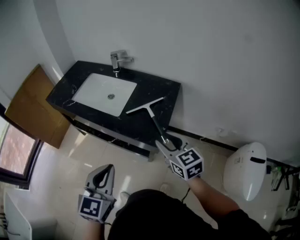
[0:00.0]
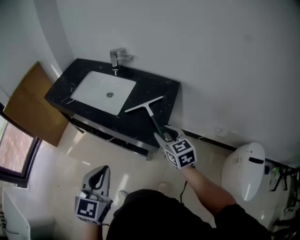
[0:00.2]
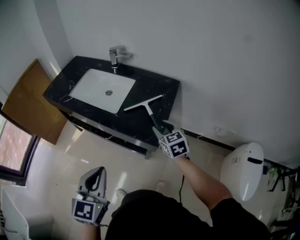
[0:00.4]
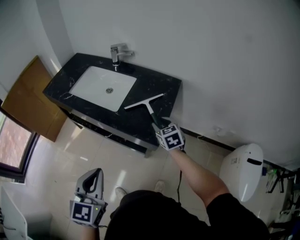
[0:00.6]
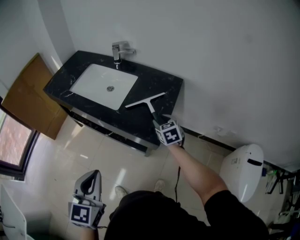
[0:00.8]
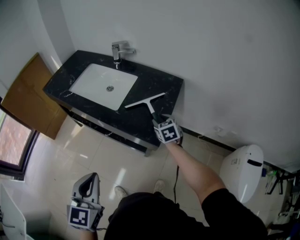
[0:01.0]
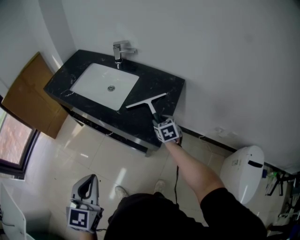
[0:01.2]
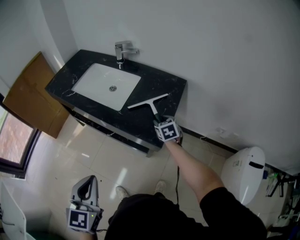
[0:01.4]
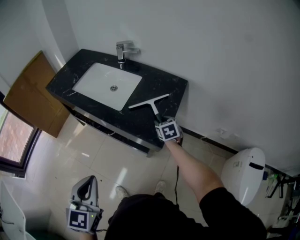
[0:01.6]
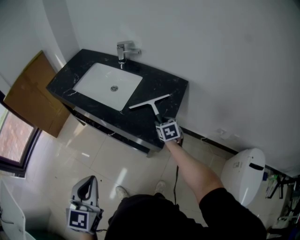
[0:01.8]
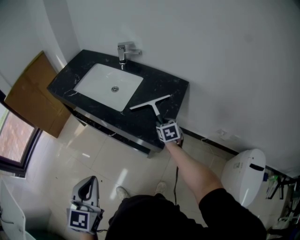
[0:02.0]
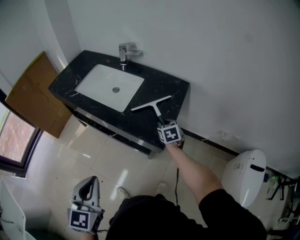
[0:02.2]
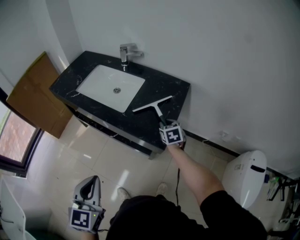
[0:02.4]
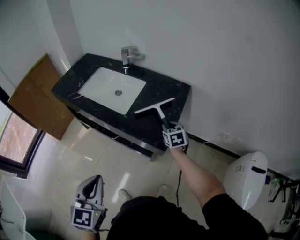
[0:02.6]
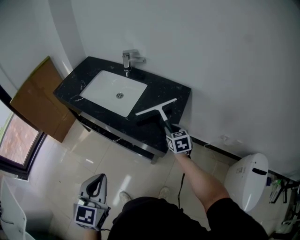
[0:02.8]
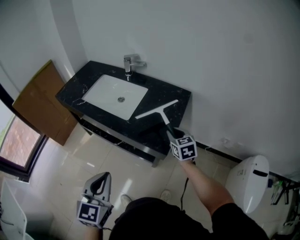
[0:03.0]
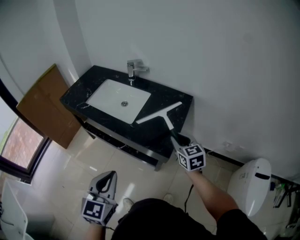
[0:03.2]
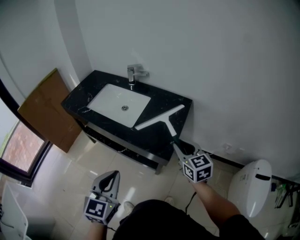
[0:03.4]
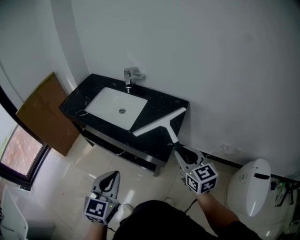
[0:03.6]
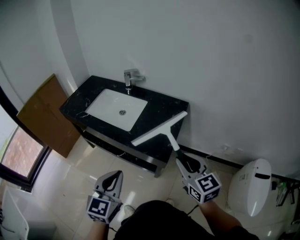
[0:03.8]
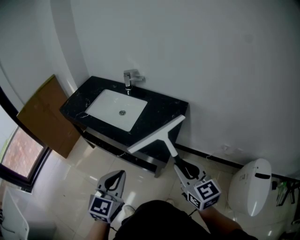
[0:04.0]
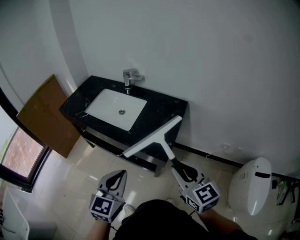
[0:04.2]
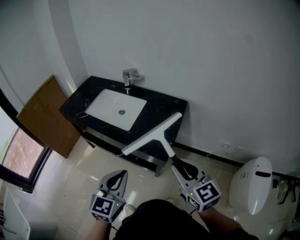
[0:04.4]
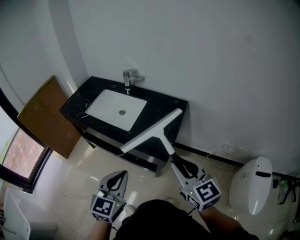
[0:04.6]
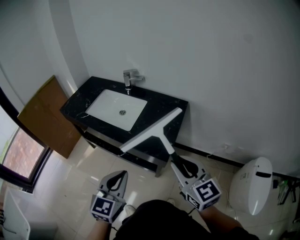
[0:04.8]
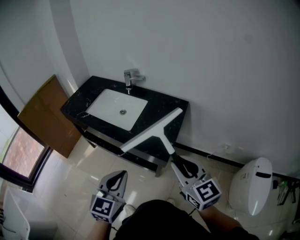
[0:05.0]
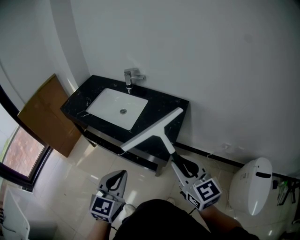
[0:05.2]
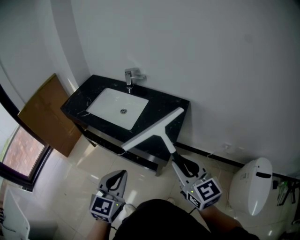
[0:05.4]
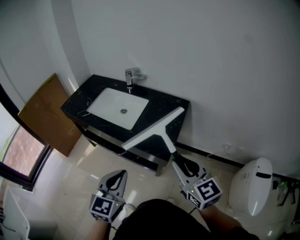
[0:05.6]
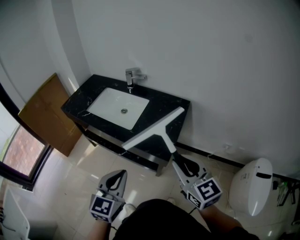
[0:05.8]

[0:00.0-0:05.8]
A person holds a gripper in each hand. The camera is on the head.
0:00.0 to 0:01.4: The right gripper shifts approximately 25 cm downward and forward, and rotates about 20 degrees, while the left gripper goes approximately 5 cm to the left.
0:01.4 to 0:02.8: The right gripper changes place by approximately 5 cm.
0:02.8 to 0:04.4: The left gripper goes approximately 5 cm to the right. Meanwhile the right gripper travels backward and upward by some 30 cm, and changes its angle by approximately 30 degrees.
0:04.4 to 0:05.8: The grippers stay close to where they were, moving slightly.

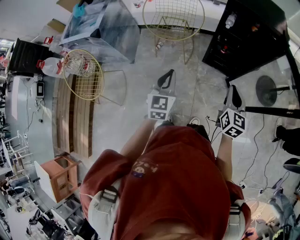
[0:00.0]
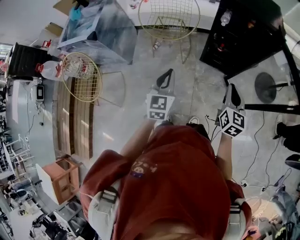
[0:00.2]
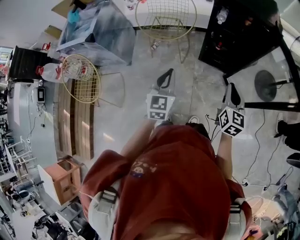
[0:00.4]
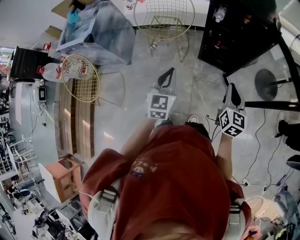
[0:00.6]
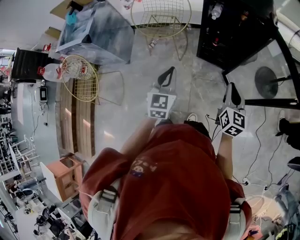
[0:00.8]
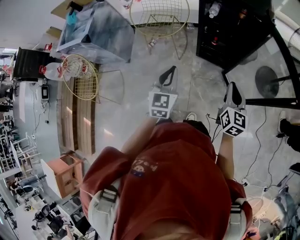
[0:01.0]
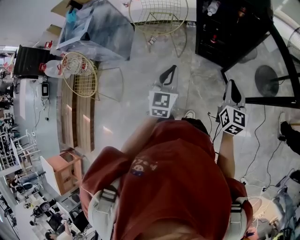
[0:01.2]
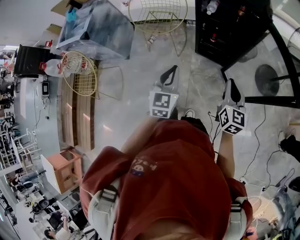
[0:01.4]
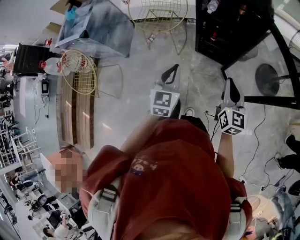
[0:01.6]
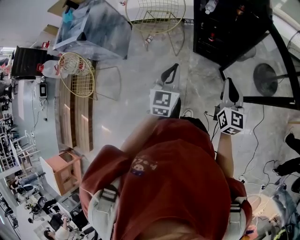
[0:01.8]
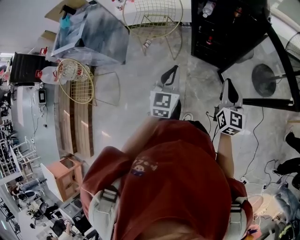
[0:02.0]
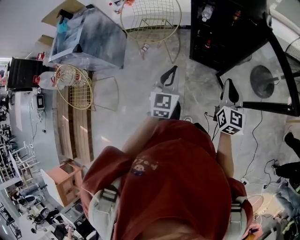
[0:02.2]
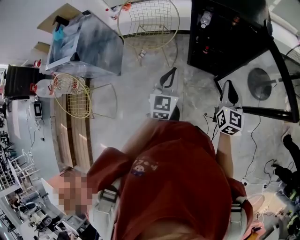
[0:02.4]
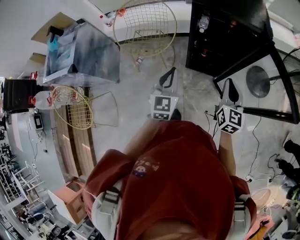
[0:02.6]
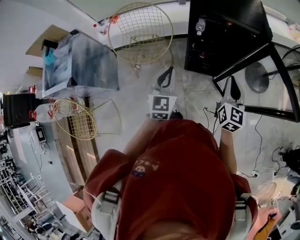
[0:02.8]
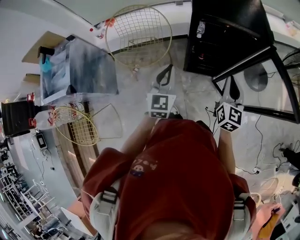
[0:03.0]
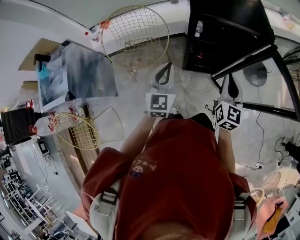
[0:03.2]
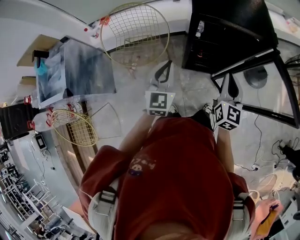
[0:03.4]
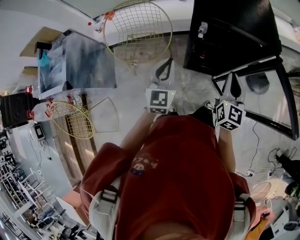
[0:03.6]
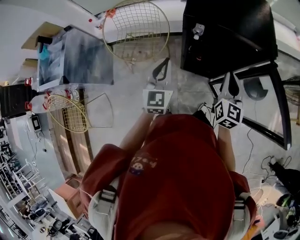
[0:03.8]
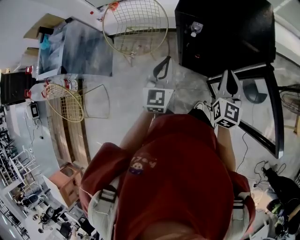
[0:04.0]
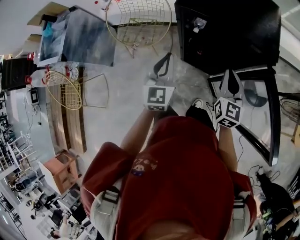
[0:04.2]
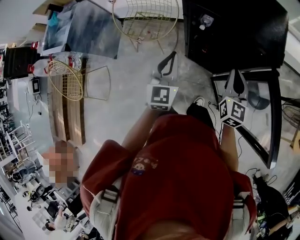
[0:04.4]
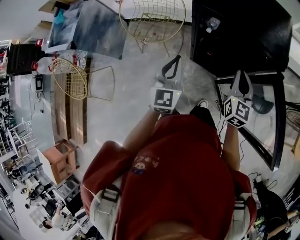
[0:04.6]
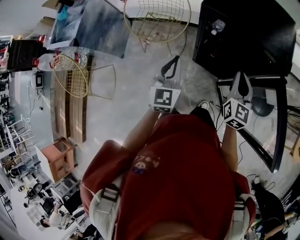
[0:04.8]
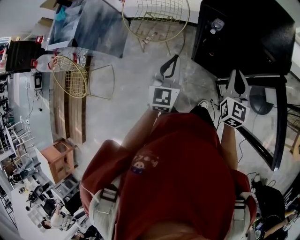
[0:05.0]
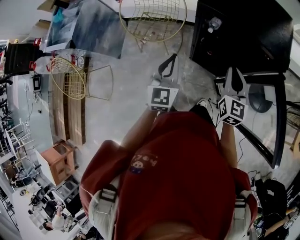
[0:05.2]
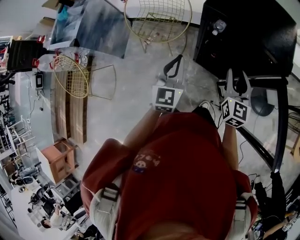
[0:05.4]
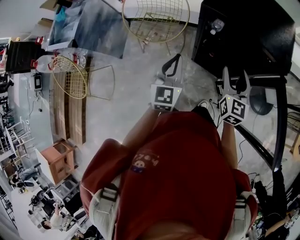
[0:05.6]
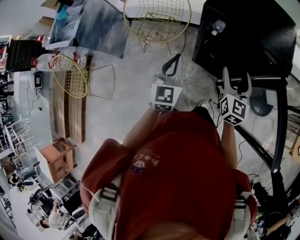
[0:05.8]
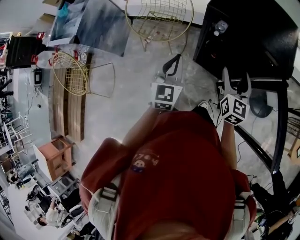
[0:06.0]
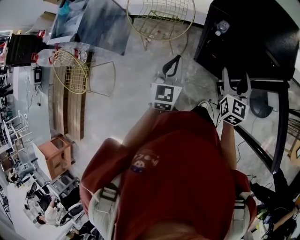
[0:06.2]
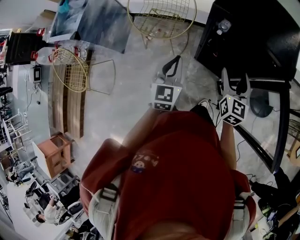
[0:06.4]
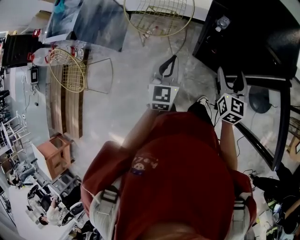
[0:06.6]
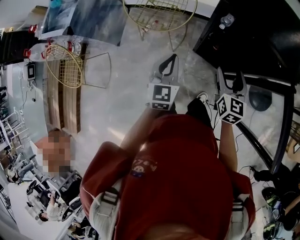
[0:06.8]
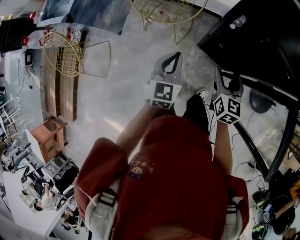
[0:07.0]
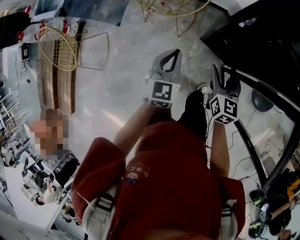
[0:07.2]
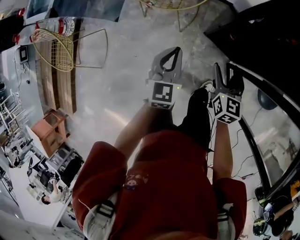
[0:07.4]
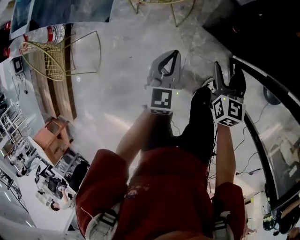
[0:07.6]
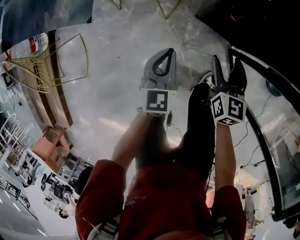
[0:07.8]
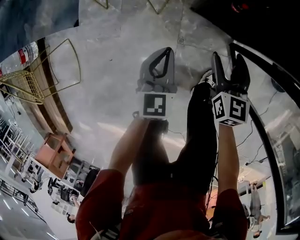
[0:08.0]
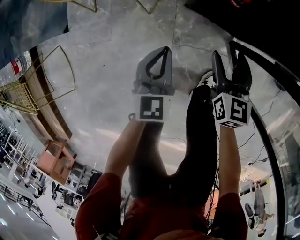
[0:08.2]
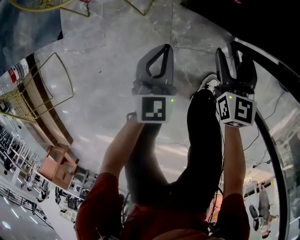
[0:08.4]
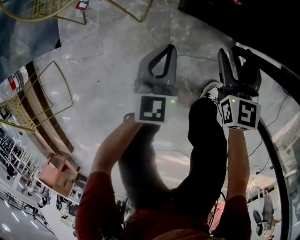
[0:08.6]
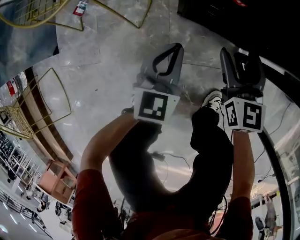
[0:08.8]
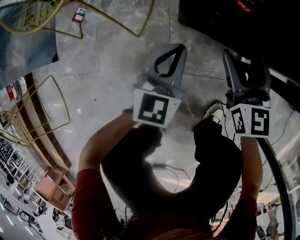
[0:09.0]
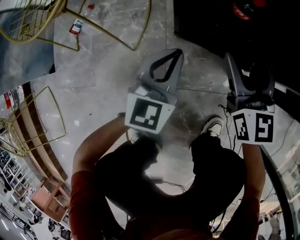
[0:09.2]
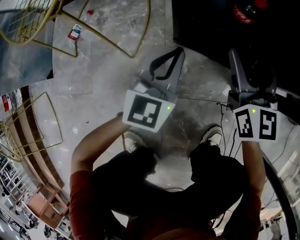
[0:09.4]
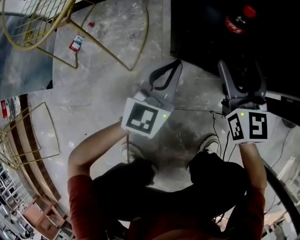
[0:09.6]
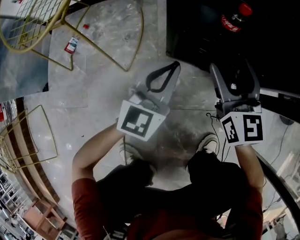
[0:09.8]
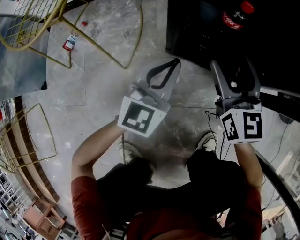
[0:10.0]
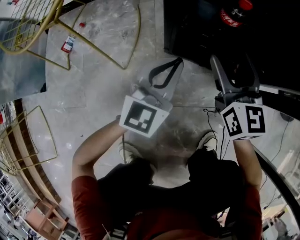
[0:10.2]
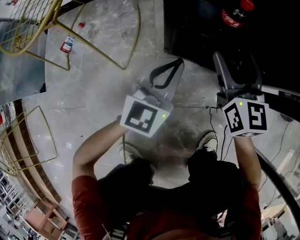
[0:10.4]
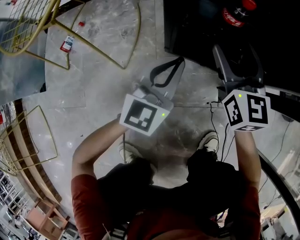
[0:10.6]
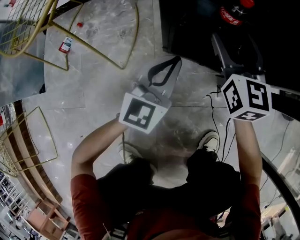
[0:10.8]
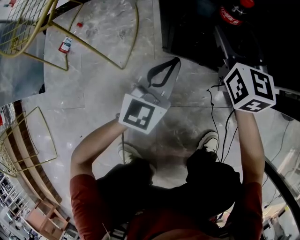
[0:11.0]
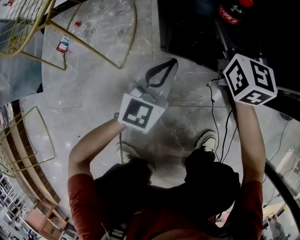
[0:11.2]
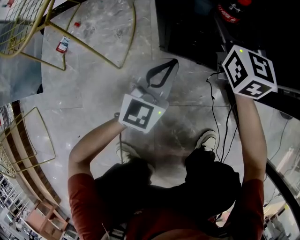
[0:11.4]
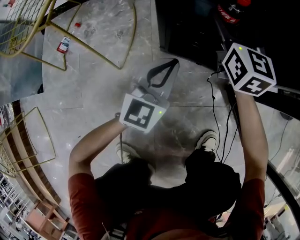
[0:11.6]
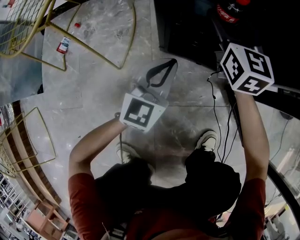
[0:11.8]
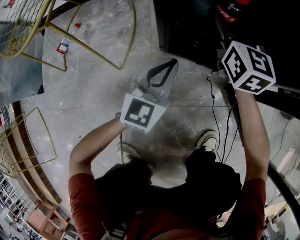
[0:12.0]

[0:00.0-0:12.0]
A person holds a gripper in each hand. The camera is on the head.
0:00.0 to 0:01.6: Both grippers move to the right, approximately 15 cm.
0:01.6 to 0:03.0: Both grippers travel together forward and to the left, some 25 cm. The right gripper changes its angle by roughly 30 degrees.
0:03.0 to 0:04.4: The right gripper heads to the right and forward, covering roughly 15 cm, and swivels about 20 degrees. Meanwhile the left gripper heads to the right, covering some 10 cm.
0:04.4 to 0:06.0: The two grippers go some 5 cm to the left. The right gripper opens up.
0:06.0 to 0:07.6: The left gripper shifts some 30 cm downward; the right gripper is displaced downward and to the left by about 30 cm.
0:07.6 to 0:09.0: Both grippers move downward, some 35 cm. The left gripper changes its angle by roughly 30 degrees.
0:09.0 to 0:10.4: The right gripper travels forward by some 5 cm; the left gripper ends up approximately 5 cm from where it was.
0:10.4 to 0:12.0: The right gripper goes some 10 cm forward.

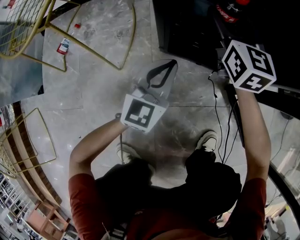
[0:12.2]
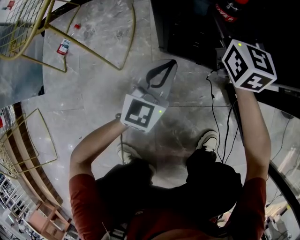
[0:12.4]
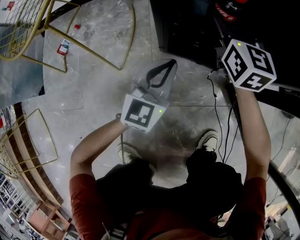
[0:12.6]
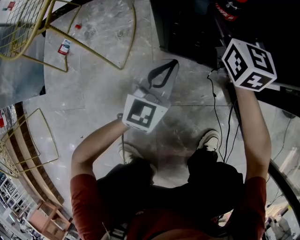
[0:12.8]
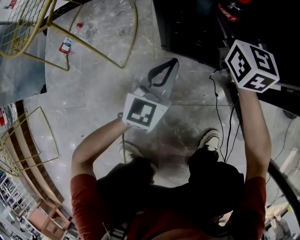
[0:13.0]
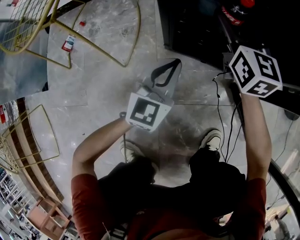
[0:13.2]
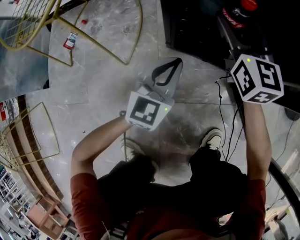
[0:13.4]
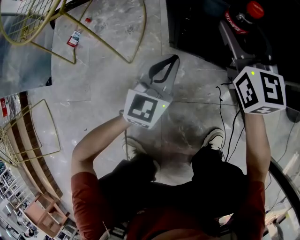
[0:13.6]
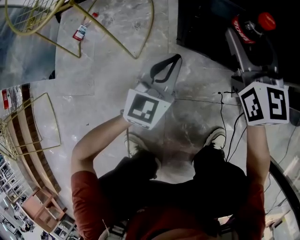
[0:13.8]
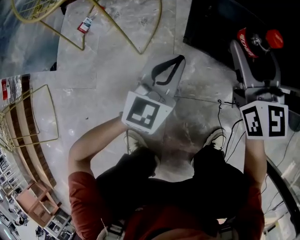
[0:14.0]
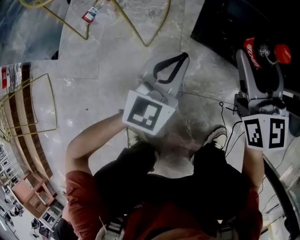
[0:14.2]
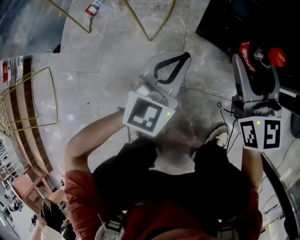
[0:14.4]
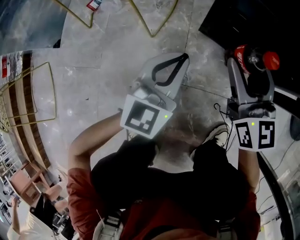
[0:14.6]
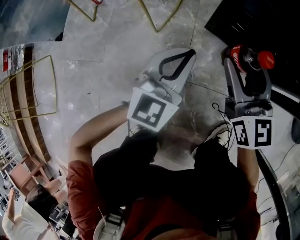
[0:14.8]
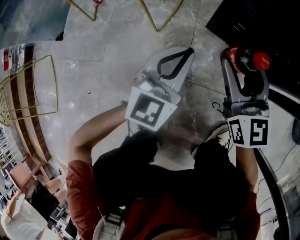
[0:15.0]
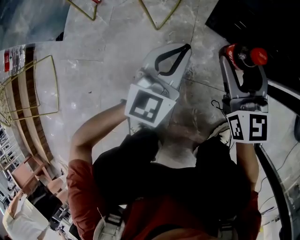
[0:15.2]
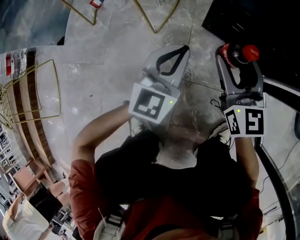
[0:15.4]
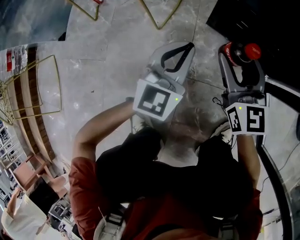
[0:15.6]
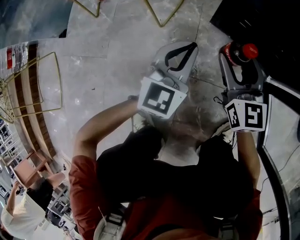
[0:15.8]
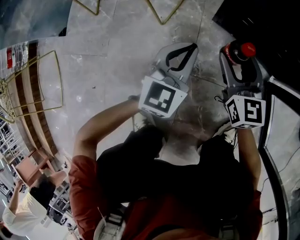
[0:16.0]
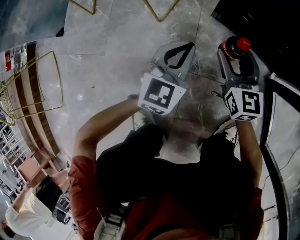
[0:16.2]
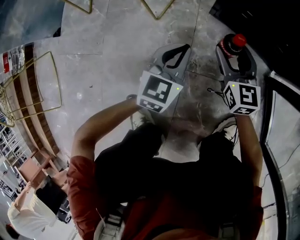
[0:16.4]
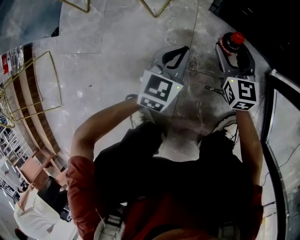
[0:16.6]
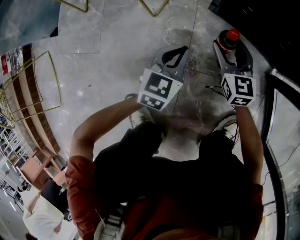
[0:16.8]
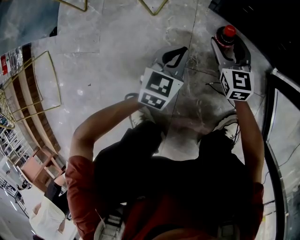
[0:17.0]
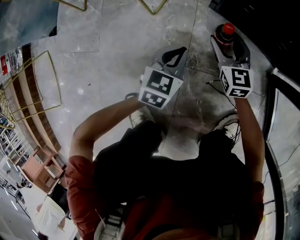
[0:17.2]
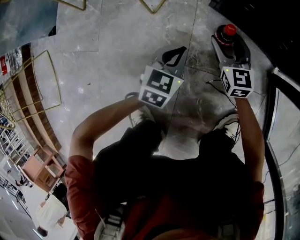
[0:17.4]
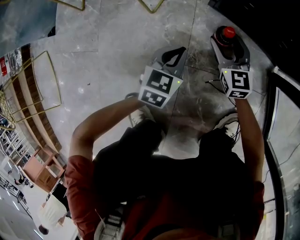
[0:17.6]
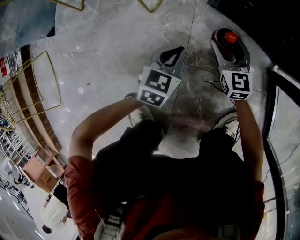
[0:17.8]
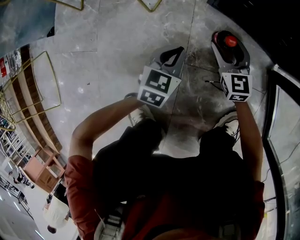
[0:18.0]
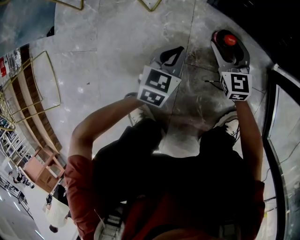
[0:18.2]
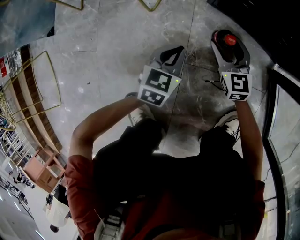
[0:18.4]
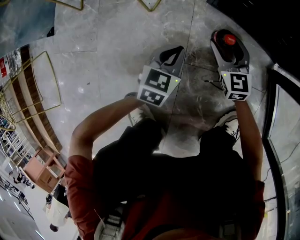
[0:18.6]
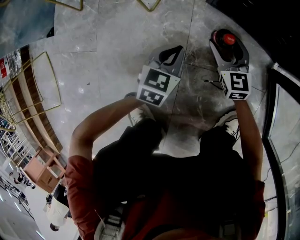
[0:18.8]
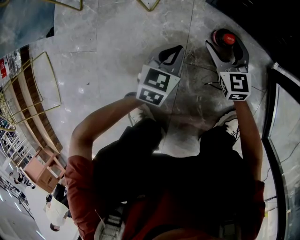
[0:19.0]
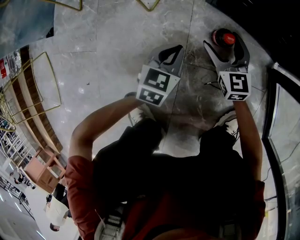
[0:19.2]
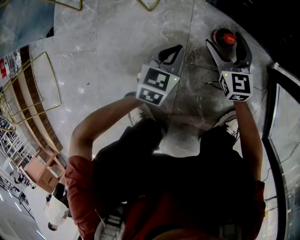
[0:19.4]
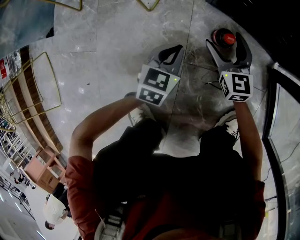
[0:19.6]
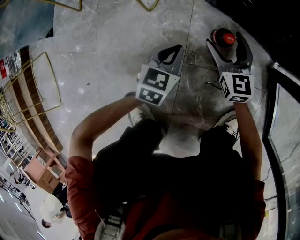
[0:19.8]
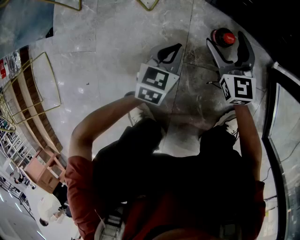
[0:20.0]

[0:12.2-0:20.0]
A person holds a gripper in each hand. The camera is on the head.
0:12.2 to 0:13.8: The right gripper moves backward, roughly 10 cm.
0:13.8 to 0:15.4: The left gripper is displaced backward by some 5 cm, while the right gripper goes approximately 15 cm backward, downward and to the left.
0:15.4 to 0:16.8: Both grippers travel together downward, approximately 15 cm. The left gripper turns by roughly 30 degrees.
0:16.8 to 0:20.0: The grippers move only a little.
